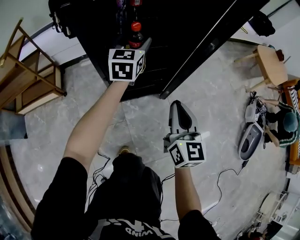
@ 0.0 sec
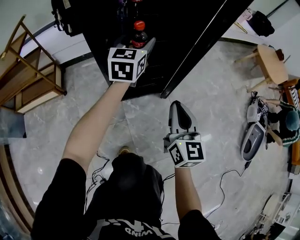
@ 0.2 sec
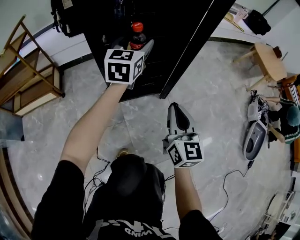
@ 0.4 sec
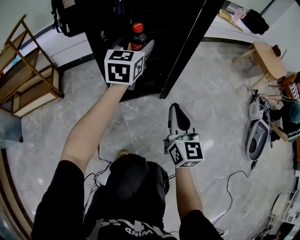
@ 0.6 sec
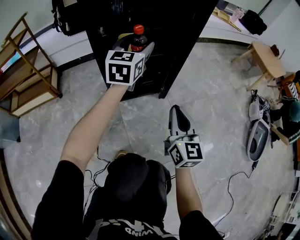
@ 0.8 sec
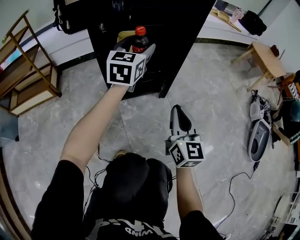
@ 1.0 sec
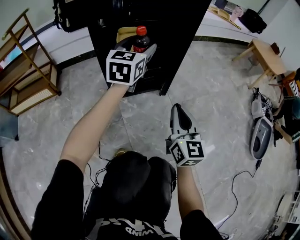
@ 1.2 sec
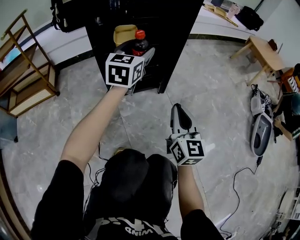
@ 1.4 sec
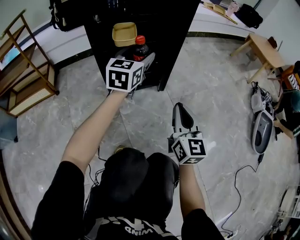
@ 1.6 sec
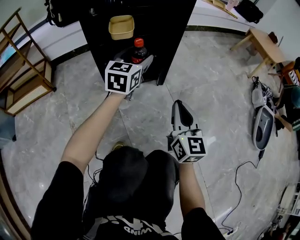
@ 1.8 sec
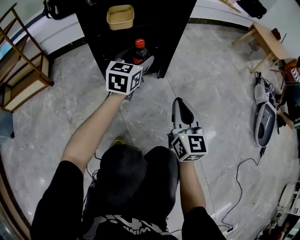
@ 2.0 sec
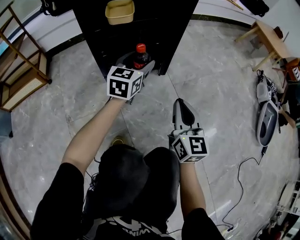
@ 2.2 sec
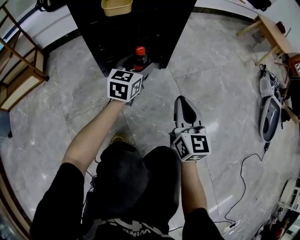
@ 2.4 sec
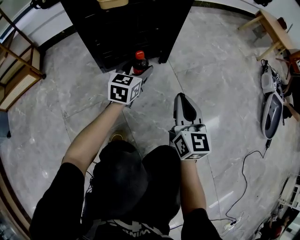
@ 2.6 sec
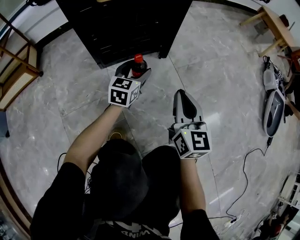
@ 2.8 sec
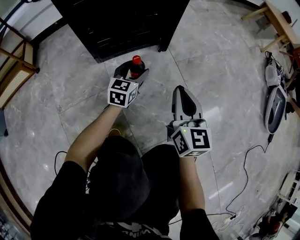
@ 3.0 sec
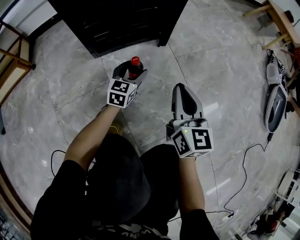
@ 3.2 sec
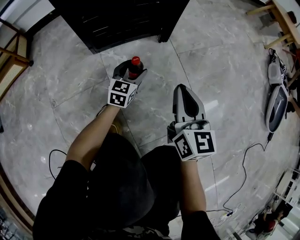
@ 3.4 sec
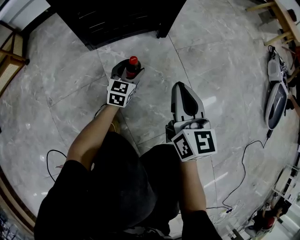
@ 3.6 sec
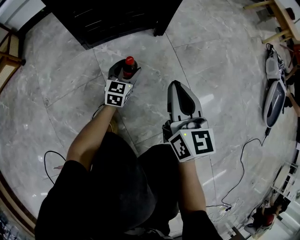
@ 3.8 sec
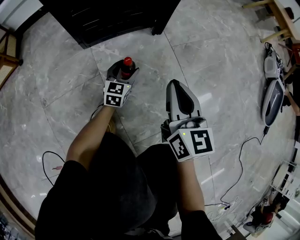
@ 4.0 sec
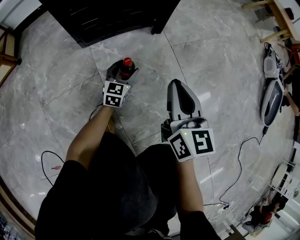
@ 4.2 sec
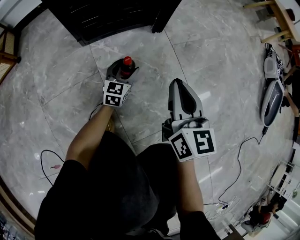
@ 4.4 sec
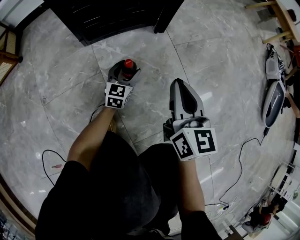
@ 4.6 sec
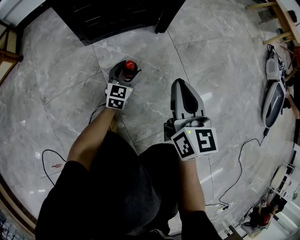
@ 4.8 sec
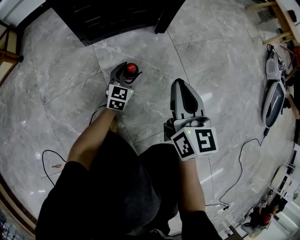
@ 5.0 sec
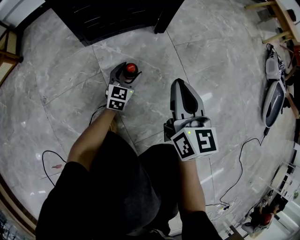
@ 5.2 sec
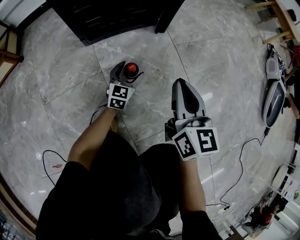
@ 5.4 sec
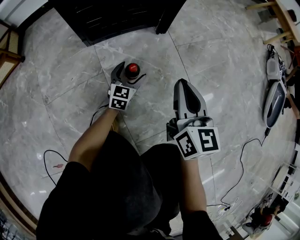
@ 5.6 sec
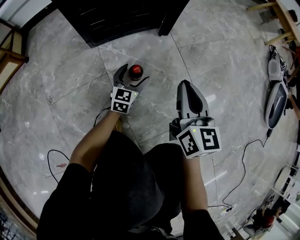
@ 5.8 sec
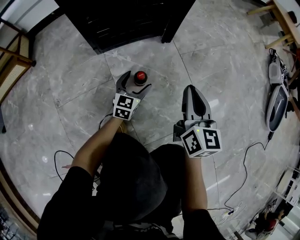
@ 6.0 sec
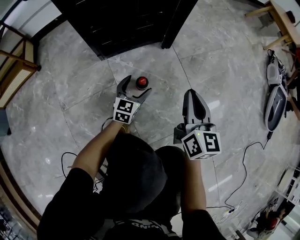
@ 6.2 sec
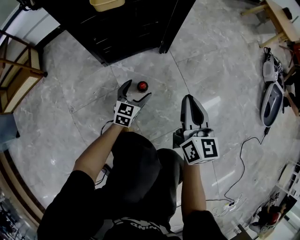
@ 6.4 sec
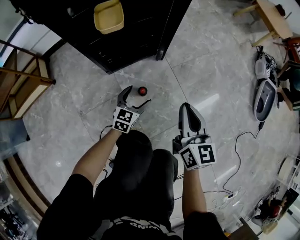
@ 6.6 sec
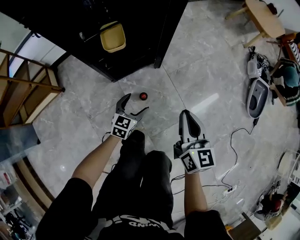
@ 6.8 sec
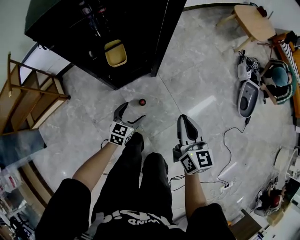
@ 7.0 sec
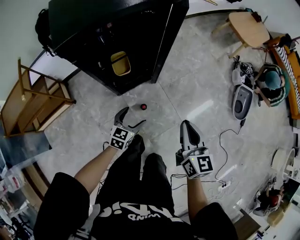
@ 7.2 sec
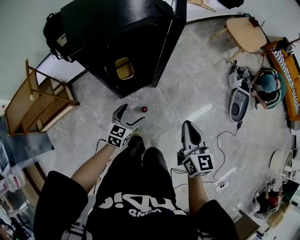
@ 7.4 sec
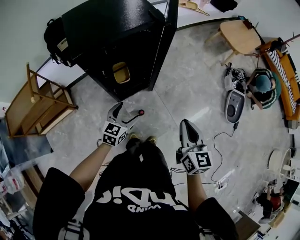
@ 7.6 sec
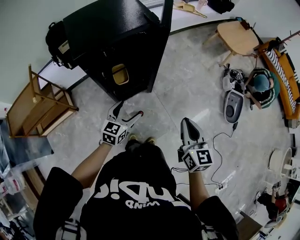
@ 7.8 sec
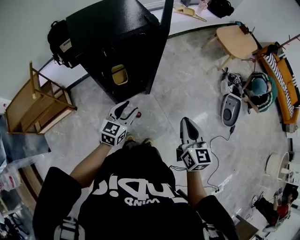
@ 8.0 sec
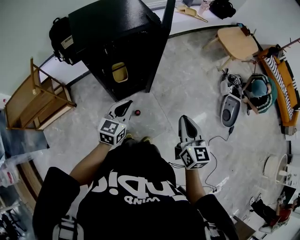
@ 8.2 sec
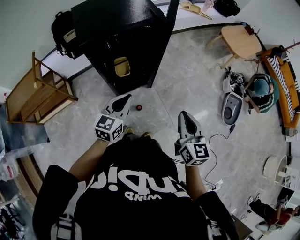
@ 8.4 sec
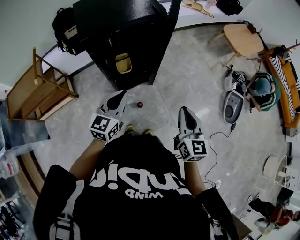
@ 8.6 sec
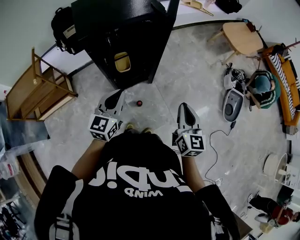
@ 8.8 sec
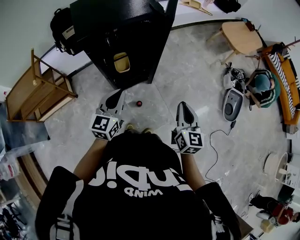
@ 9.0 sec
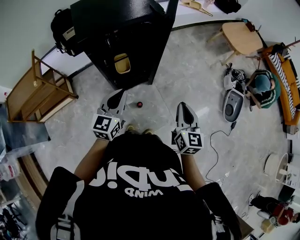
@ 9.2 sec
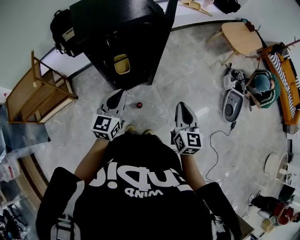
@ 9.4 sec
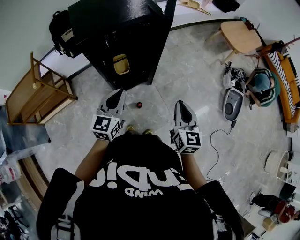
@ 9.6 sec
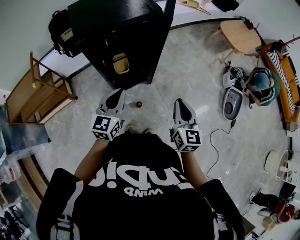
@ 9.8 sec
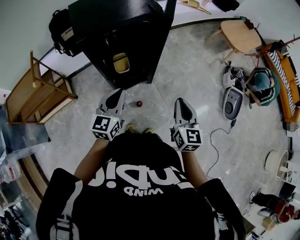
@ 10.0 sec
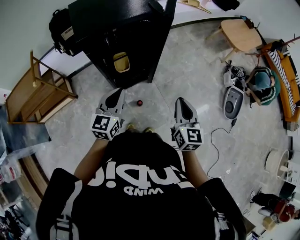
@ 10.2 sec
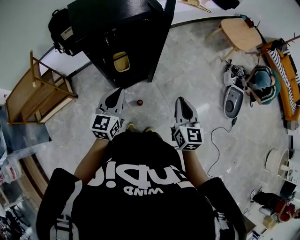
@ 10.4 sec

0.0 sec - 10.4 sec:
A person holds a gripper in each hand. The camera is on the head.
0.0 sec - 1.4 sec: The right gripper travels downward and backward by some 20 cm. The left gripper goes approximately 20 cm backward, downward and to the right.
1.4 sec - 3.0 sec: The left gripper goes approximately 40 cm downward. The right gripper heads downward, covering some 15 cm.
3.0 sec - 4.4 sec: The left gripper goes about 15 cm downward.
4.4 sec - 6.0 sec: The left gripper shifts by some 5 cm.
6.0 sec - 7.4 sec: Both grippers travel together upward, roughly 60 cm.
7.4 sec - 9.0 sec: The left gripper travels upward by approximately 20 cm, rotates some 20 degrees, and closes up.
9.0 sec - 10.4 sec: The grippers move only a little.

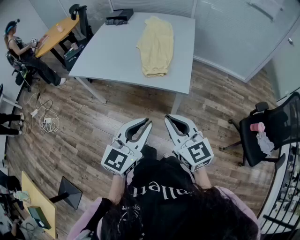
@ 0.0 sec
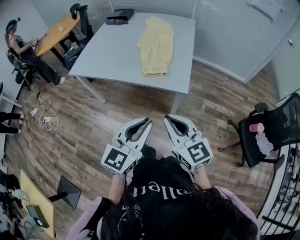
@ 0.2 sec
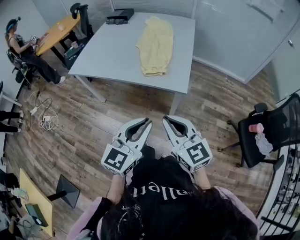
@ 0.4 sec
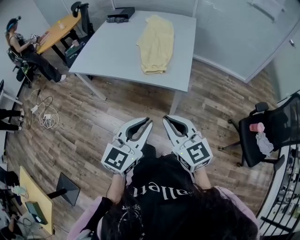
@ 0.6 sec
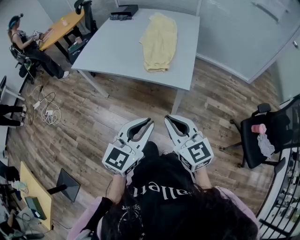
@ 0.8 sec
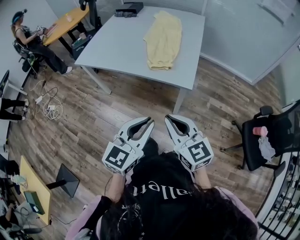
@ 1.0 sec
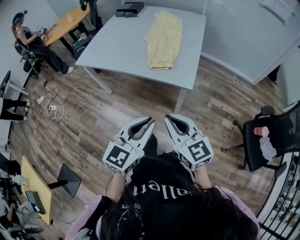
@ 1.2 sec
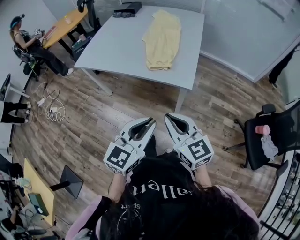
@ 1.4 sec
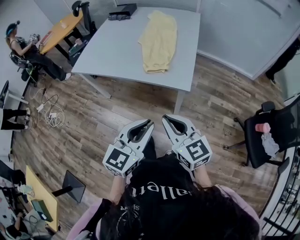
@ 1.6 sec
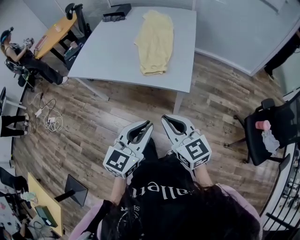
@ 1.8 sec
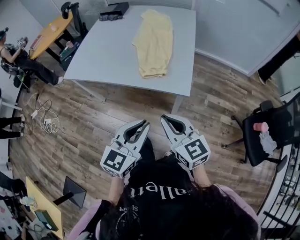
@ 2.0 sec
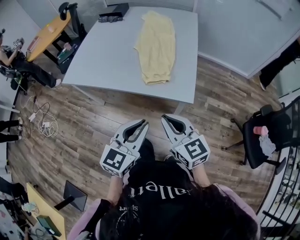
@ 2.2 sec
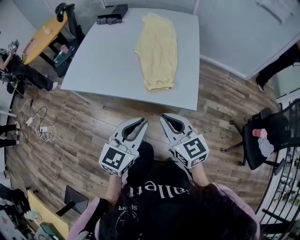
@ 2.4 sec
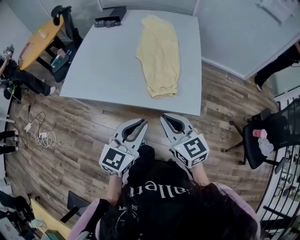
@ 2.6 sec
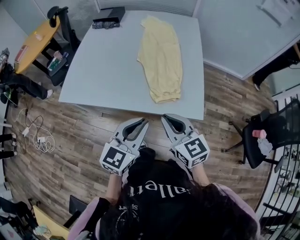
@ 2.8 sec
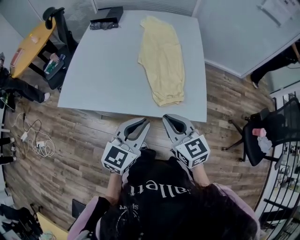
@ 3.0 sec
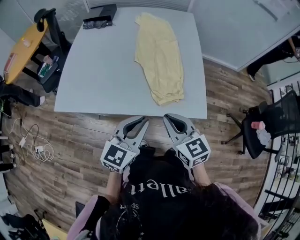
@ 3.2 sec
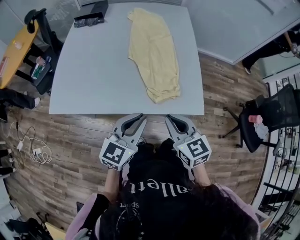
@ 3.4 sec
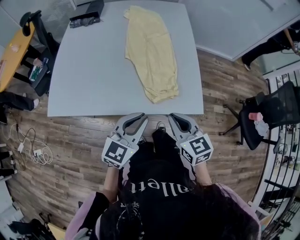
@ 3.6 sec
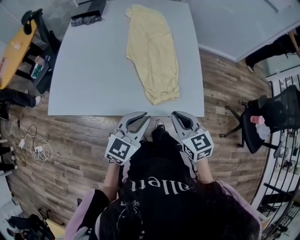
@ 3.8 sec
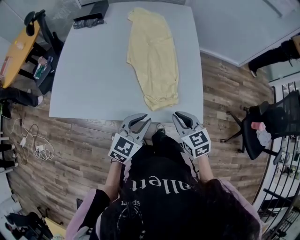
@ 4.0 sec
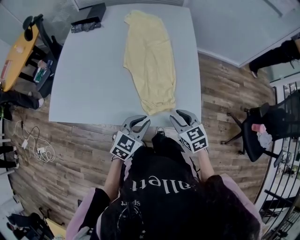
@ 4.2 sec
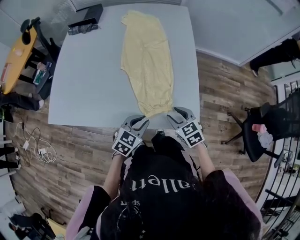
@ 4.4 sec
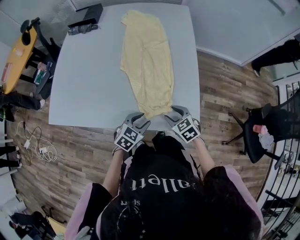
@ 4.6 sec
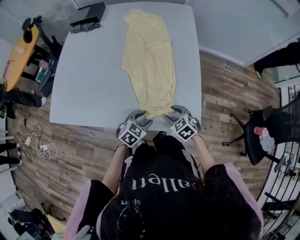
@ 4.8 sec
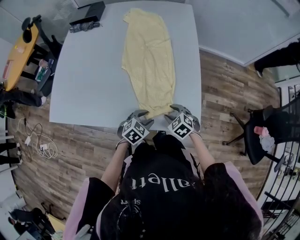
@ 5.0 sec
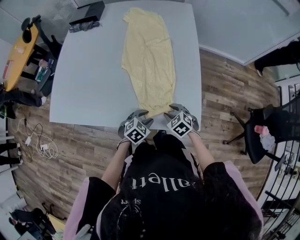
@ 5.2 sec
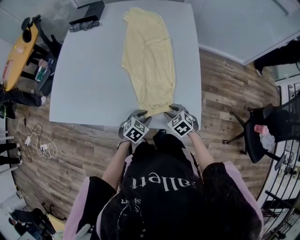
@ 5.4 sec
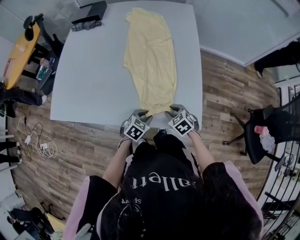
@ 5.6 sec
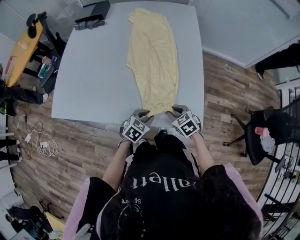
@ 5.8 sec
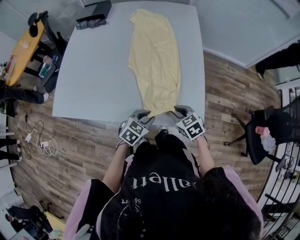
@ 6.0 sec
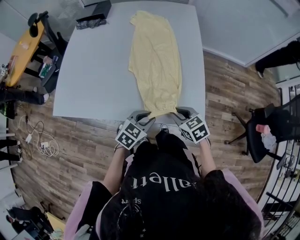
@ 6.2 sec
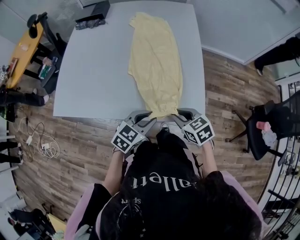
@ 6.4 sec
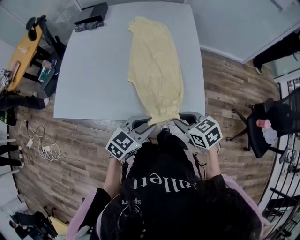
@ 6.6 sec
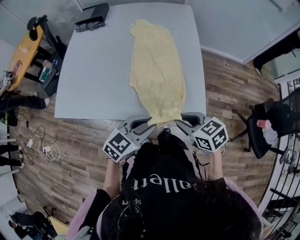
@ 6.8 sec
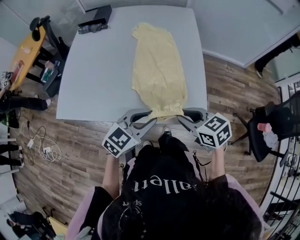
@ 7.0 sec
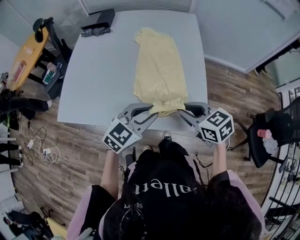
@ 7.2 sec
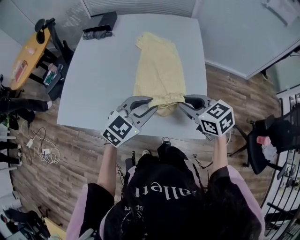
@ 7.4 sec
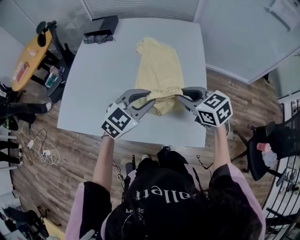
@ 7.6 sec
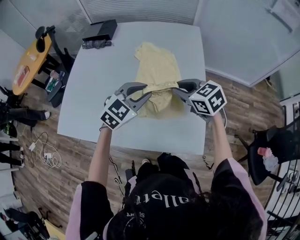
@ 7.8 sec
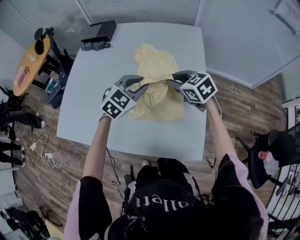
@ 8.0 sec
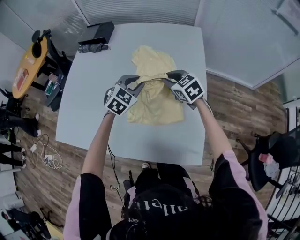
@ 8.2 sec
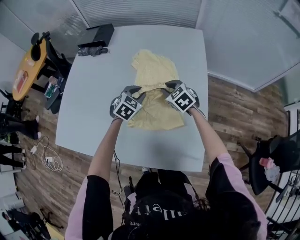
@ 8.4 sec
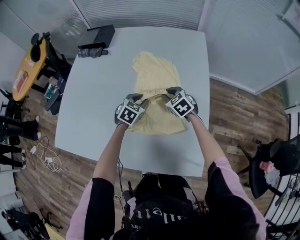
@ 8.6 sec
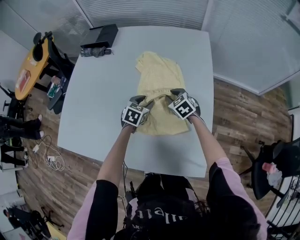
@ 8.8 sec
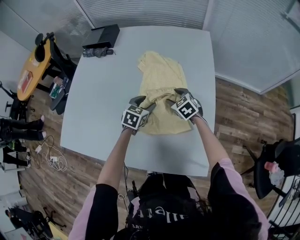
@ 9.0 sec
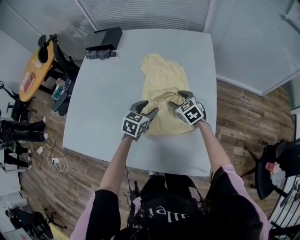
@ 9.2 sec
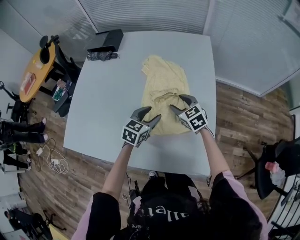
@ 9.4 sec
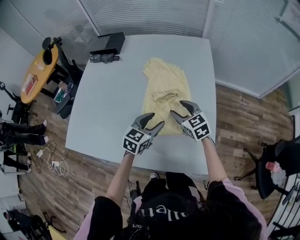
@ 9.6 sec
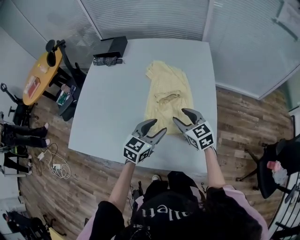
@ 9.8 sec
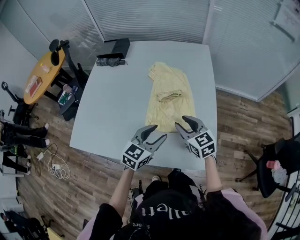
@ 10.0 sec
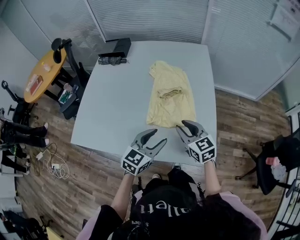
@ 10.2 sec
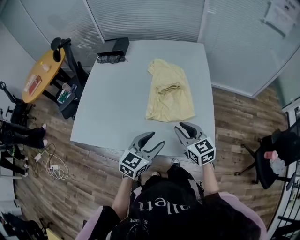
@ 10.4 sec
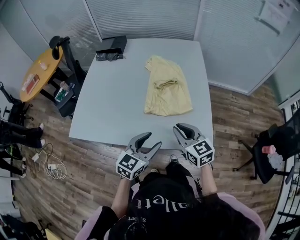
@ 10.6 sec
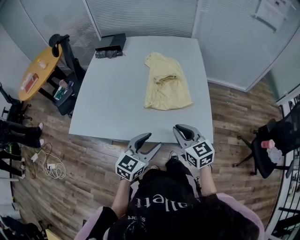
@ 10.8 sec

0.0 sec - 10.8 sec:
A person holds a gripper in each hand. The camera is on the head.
0.0 sec - 1.6 sec: There are only small adjustments of the grippers.
1.6 sec - 3.0 sec: Both grippers travel together forward and to the left, some 30 cm.
3.0 sec - 4.6 sec: The left gripper travels downward and forward by approximately 25 cm, rotates about 30 degrees, and opens. The right gripper moves downward, forward and to the right, about 25 cm, swivels approximately 30 degrees, and opens.
4.6 sec - 6.2 sec: The right gripper ends up approximately 5 cm from where it was, and closes up.
6.2 sec - 7.8 sec: The grippers both shift forward and upward by approximately 25 cm. The left gripper swivels roughly 20 degrees.
7.8 sec - 9.2 sec: Both grippers travel together downward and forward, some 20 cm. The left gripper turns by roughly 30 degrees, and opens, while the right gripper opens up.
9.2 sec - 10.8 sec: The left gripper heads backward, covering some 35 cm, and changes its angle by some 20 degrees. The right gripper moves backward and upward, about 35 cm, swivels about 30 degrees, and closes up.

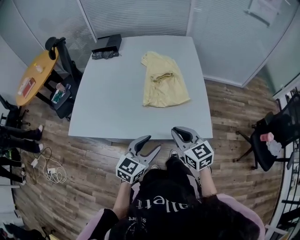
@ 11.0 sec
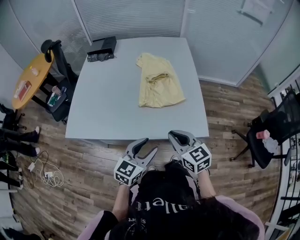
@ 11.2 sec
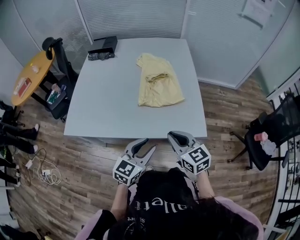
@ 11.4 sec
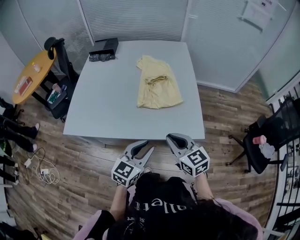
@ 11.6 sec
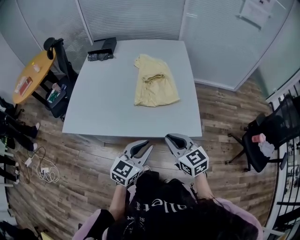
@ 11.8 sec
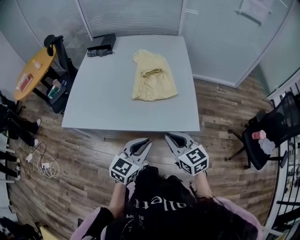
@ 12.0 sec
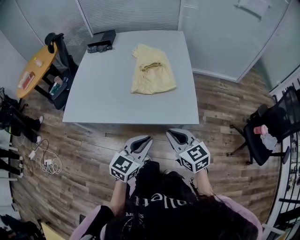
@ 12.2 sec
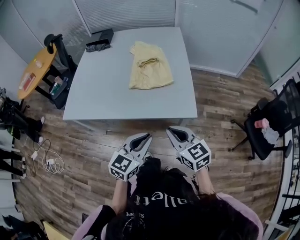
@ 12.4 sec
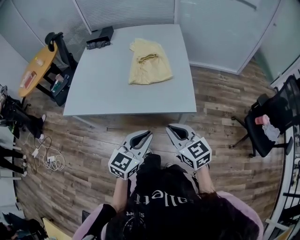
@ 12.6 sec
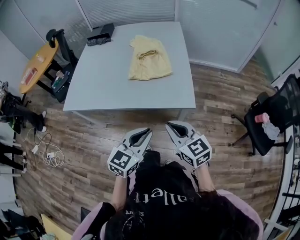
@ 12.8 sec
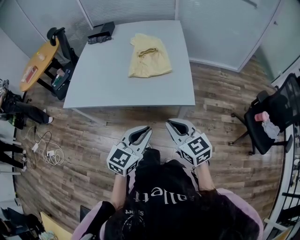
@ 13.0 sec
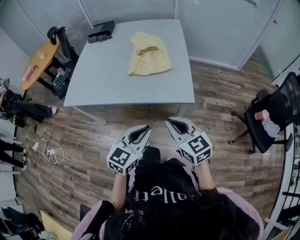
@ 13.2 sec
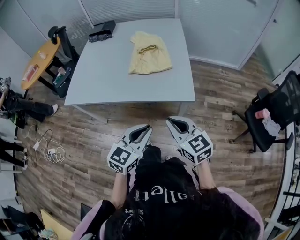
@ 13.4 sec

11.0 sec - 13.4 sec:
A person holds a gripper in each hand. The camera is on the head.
11.0 sec - 12.2 sec: The grippers both shift backward and to the right by about 10 cm. The left gripper closes.
12.2 sec - 13.4 sec: The two grippers go approximately 10 cm backward.
